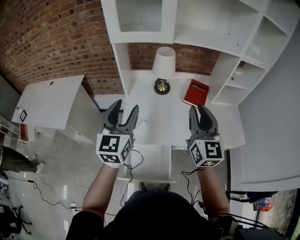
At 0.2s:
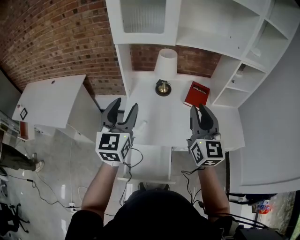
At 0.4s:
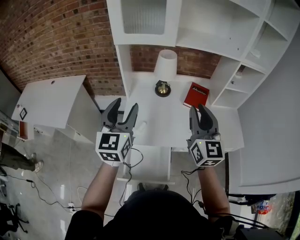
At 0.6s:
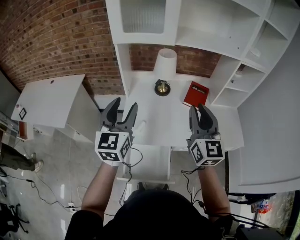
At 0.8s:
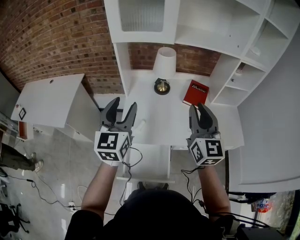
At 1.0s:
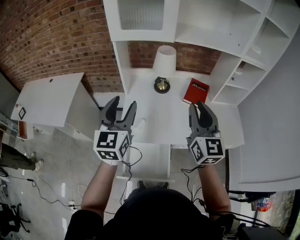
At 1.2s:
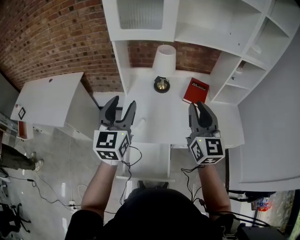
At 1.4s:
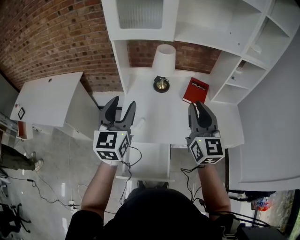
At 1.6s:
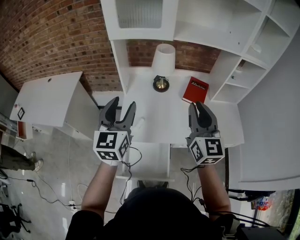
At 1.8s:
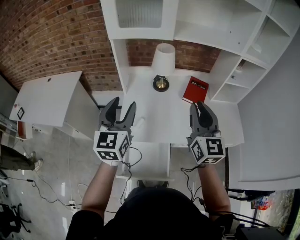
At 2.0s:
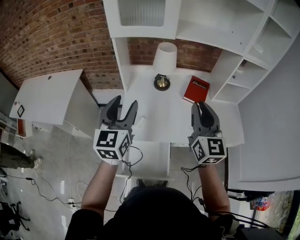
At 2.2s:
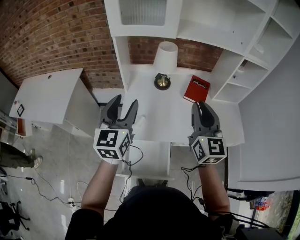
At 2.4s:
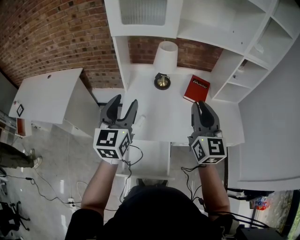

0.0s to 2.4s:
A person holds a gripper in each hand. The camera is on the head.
0.0s to 1.2s: There are only small adjustments of the grippers.
1.2s to 2.4s: Both grippers stay put.

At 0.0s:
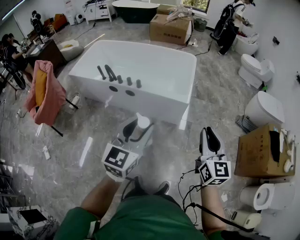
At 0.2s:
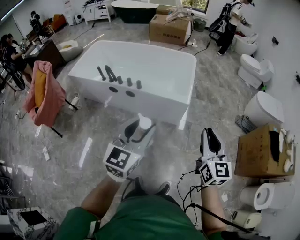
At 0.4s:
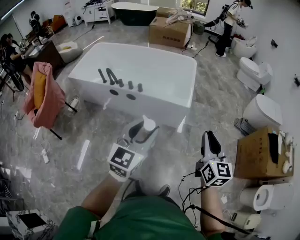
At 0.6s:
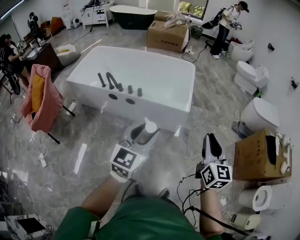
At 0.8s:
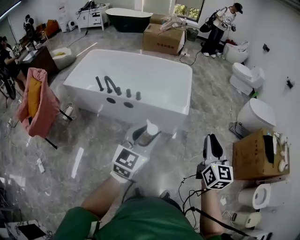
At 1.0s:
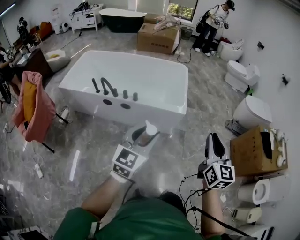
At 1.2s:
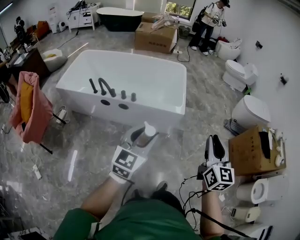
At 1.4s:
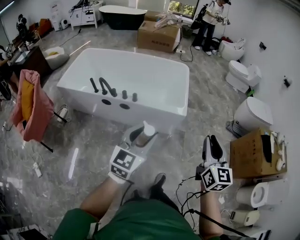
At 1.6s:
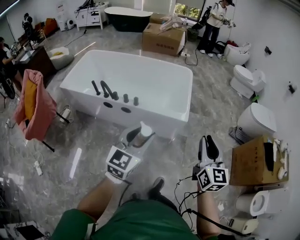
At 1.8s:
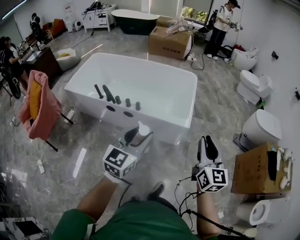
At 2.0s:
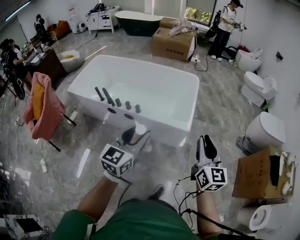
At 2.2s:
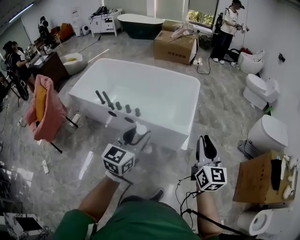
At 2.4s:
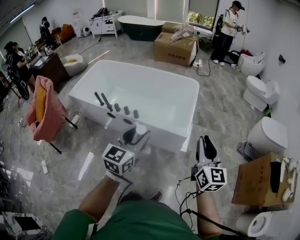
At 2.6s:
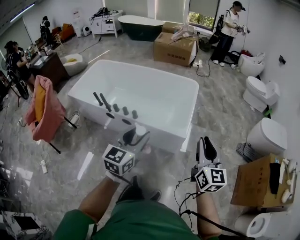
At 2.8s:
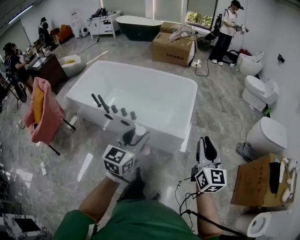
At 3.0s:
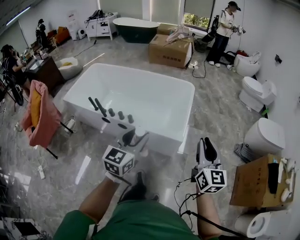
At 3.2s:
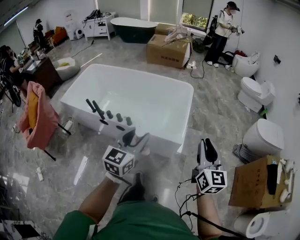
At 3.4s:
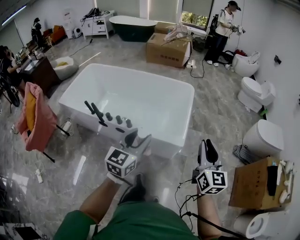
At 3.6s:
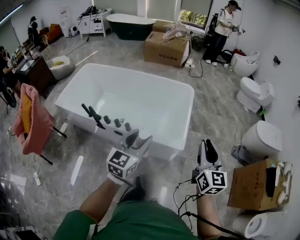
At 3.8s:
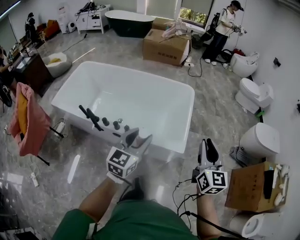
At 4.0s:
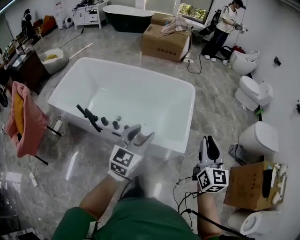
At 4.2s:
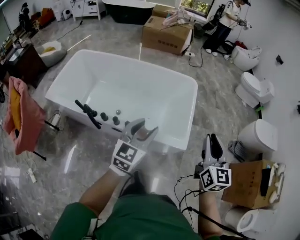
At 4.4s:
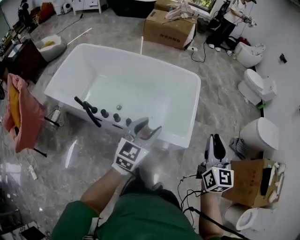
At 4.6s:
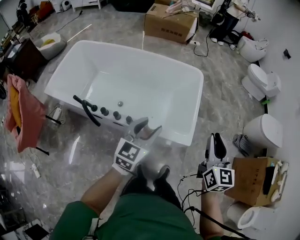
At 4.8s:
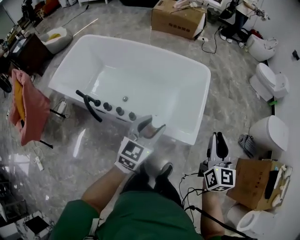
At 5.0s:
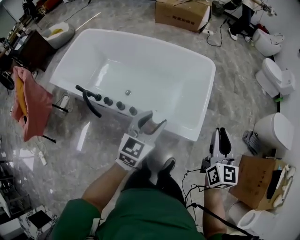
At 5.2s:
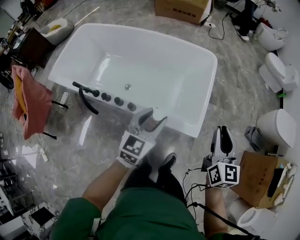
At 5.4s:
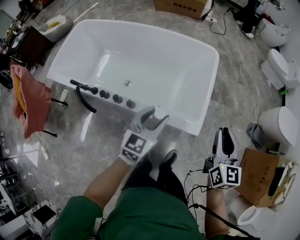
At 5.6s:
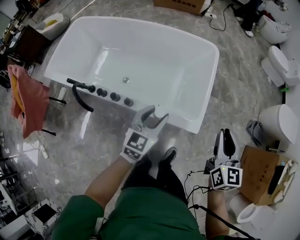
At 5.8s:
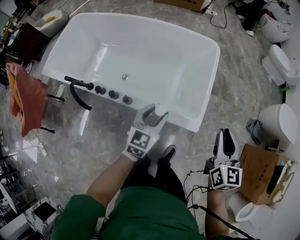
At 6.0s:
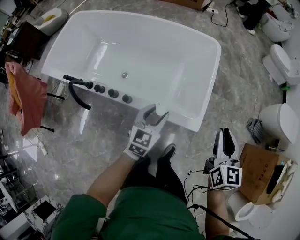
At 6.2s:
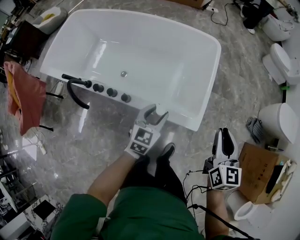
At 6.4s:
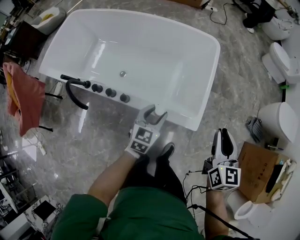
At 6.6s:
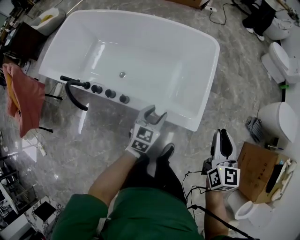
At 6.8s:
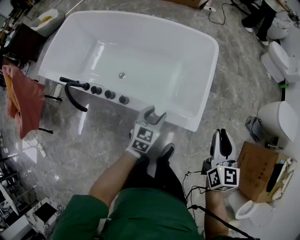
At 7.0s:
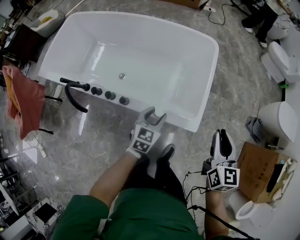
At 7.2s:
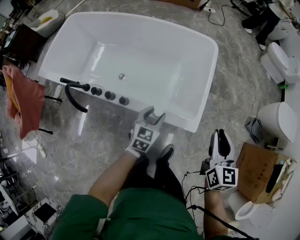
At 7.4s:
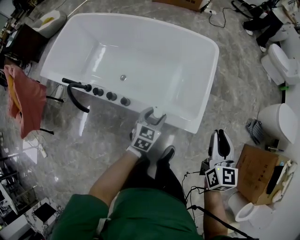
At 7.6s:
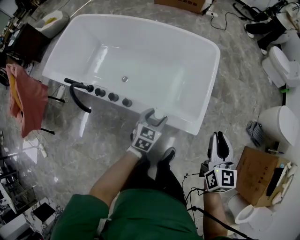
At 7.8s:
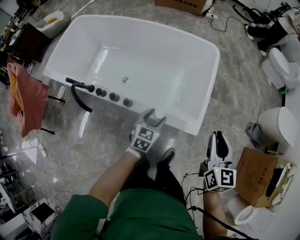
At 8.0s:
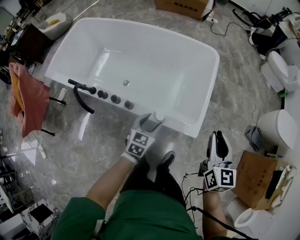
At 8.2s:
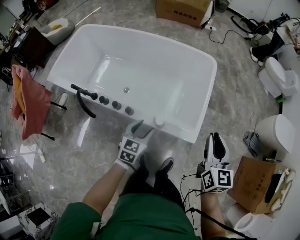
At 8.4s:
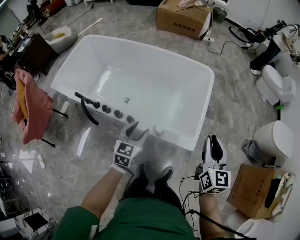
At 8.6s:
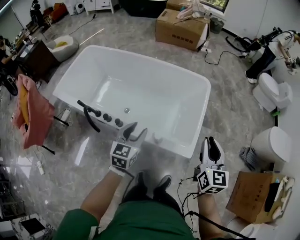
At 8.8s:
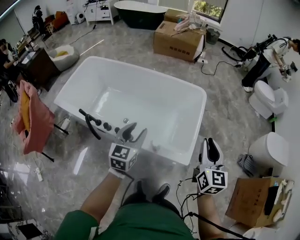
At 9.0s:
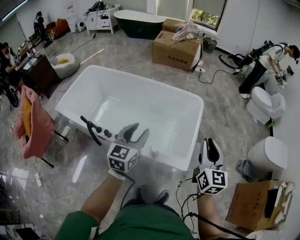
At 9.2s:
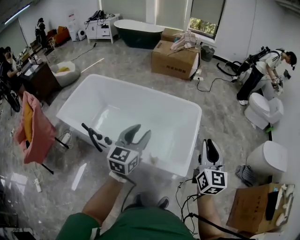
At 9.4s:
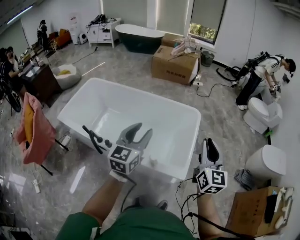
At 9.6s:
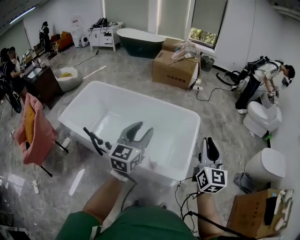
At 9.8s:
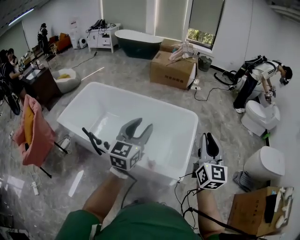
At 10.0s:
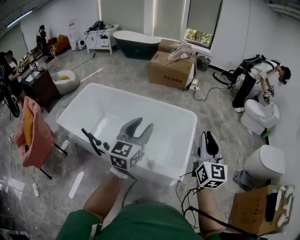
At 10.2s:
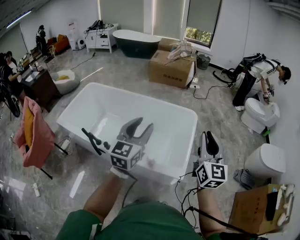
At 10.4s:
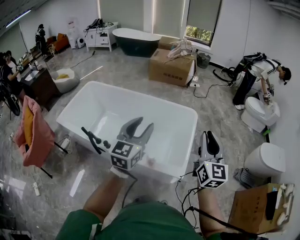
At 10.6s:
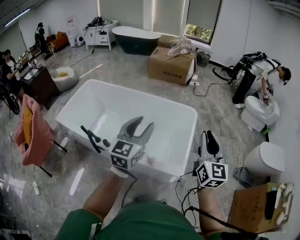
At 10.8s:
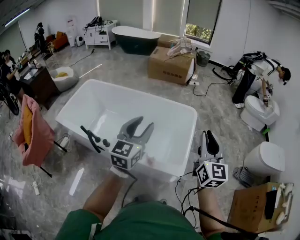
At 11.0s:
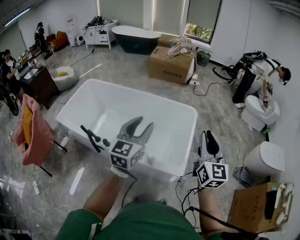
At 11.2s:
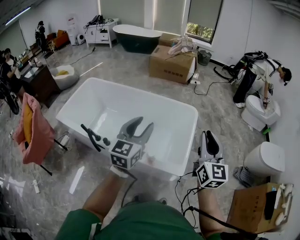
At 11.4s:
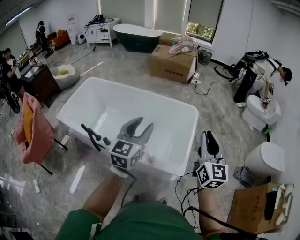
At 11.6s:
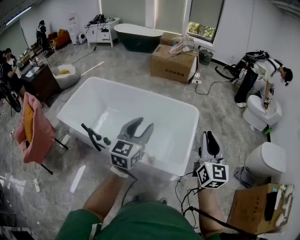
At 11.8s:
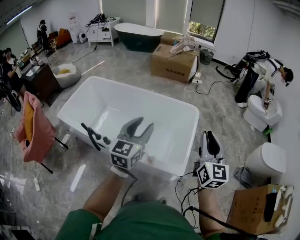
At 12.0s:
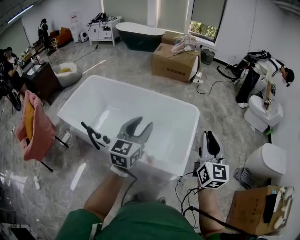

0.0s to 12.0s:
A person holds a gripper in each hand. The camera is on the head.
0.0s to 1.6s: The left gripper travels forward and to the left by about 15 cm, while the right gripper is displaced to the left and forward by approximately 15 cm.
1.6s to 3.0s: Both grippers travel together forward and to the right, about 20 cm.
3.0s to 4.4s: Both grippers move forward and to the left, approximately 30 cm.
4.4s to 6.0s: Both grippers travel together downward and forward, about 20 cm.
6.0s to 7.6s: The left gripper is displaced downward by approximately 10 cm.
7.6s to 9.0s: The left gripper shifts roughly 30 cm upward, and swivels about 30 degrees, while the right gripper goes some 20 cm upward.
9.0s to 10.4s: The grippers both shift upward by some 10 cm.
10.4s to 12.0s: The grippers make only small movements.

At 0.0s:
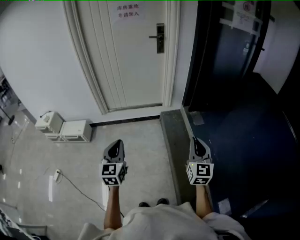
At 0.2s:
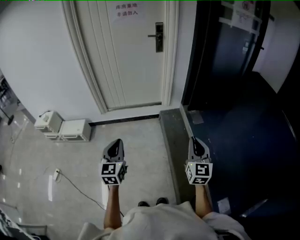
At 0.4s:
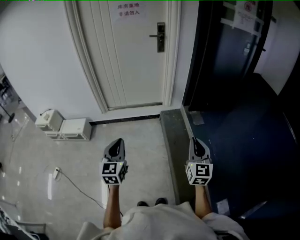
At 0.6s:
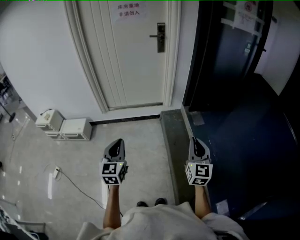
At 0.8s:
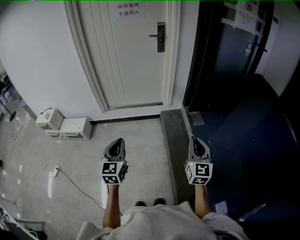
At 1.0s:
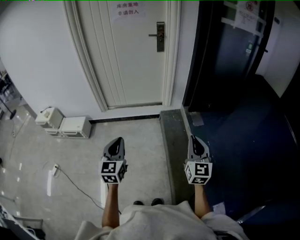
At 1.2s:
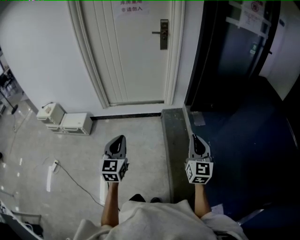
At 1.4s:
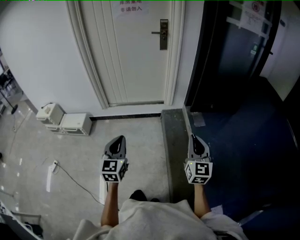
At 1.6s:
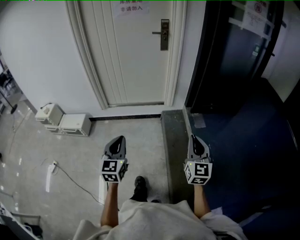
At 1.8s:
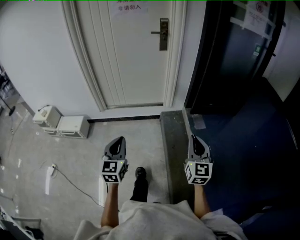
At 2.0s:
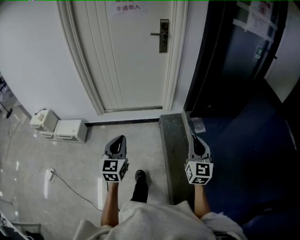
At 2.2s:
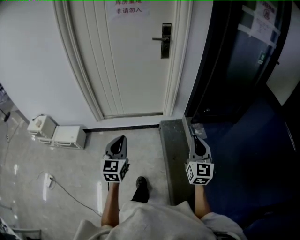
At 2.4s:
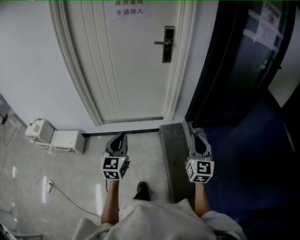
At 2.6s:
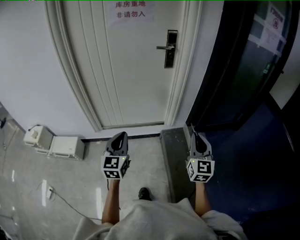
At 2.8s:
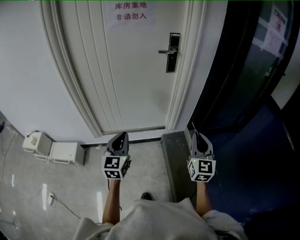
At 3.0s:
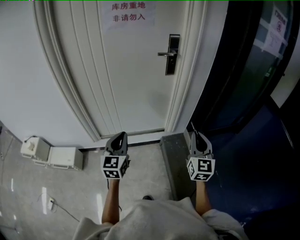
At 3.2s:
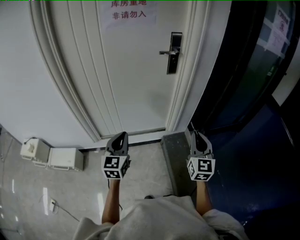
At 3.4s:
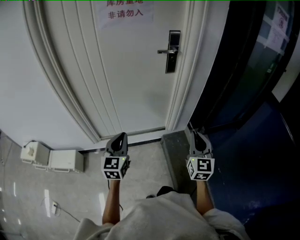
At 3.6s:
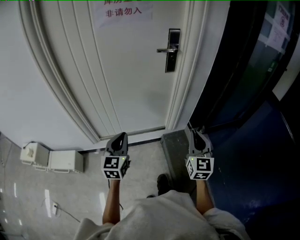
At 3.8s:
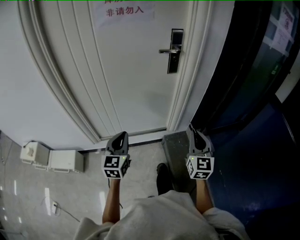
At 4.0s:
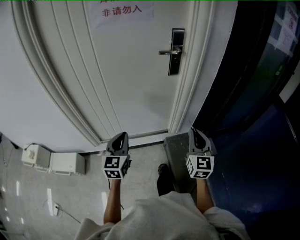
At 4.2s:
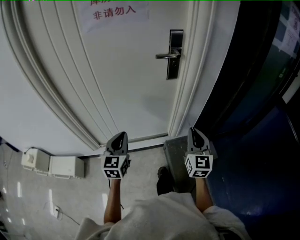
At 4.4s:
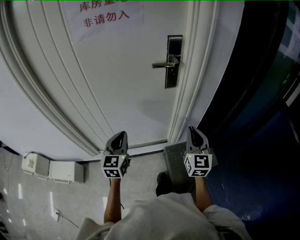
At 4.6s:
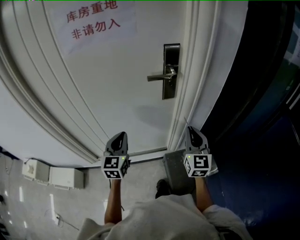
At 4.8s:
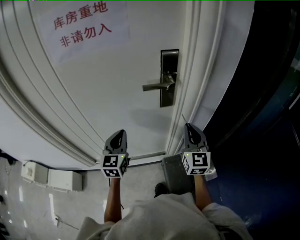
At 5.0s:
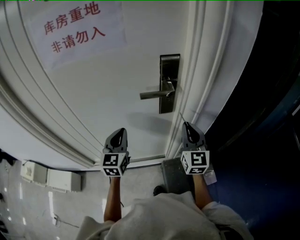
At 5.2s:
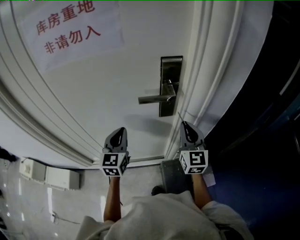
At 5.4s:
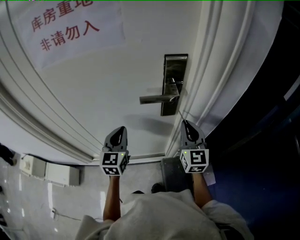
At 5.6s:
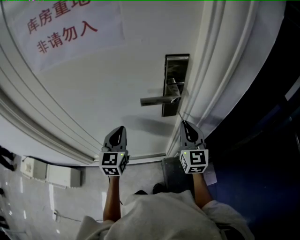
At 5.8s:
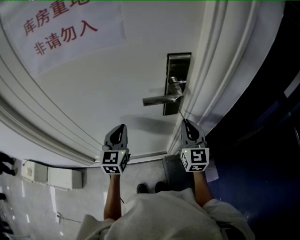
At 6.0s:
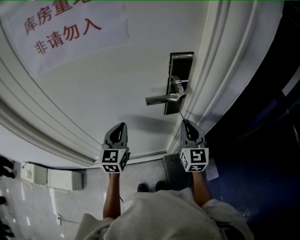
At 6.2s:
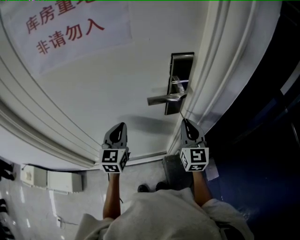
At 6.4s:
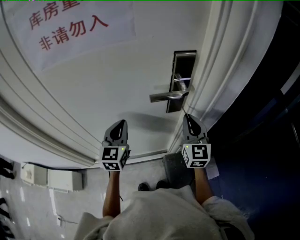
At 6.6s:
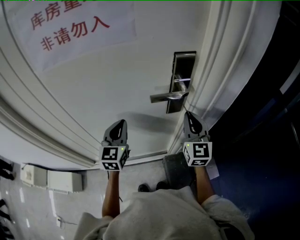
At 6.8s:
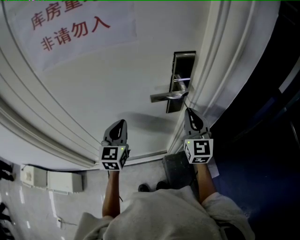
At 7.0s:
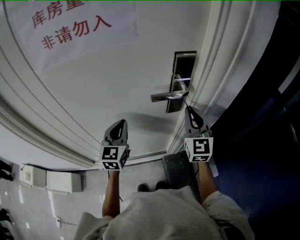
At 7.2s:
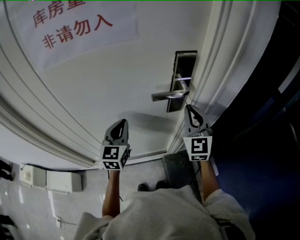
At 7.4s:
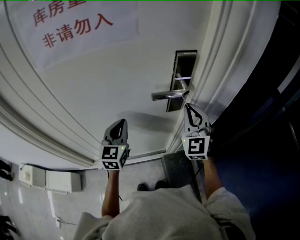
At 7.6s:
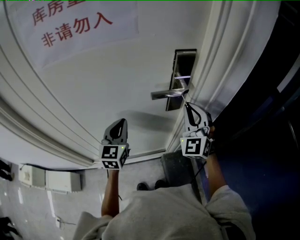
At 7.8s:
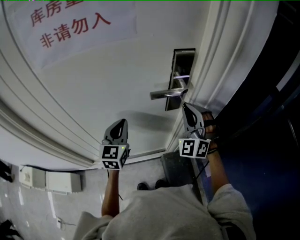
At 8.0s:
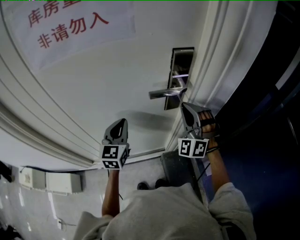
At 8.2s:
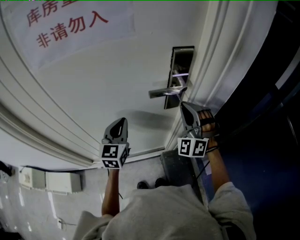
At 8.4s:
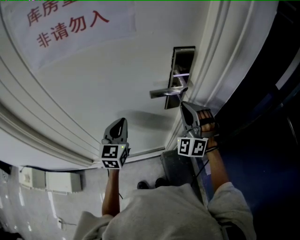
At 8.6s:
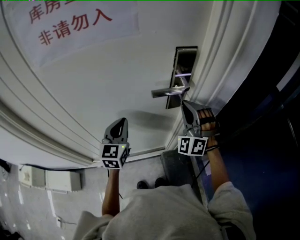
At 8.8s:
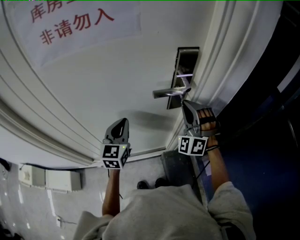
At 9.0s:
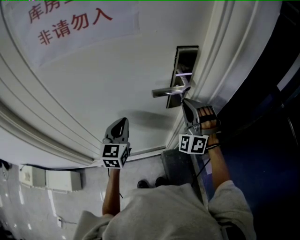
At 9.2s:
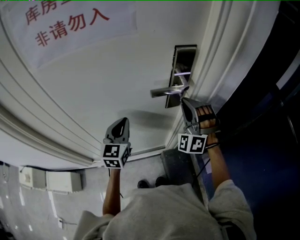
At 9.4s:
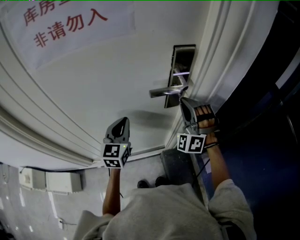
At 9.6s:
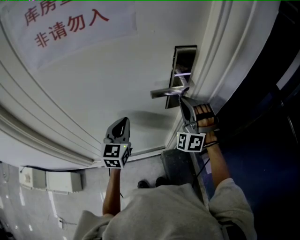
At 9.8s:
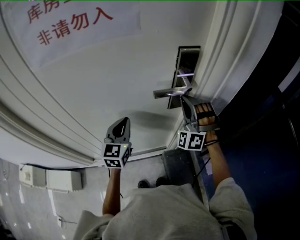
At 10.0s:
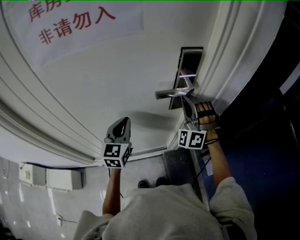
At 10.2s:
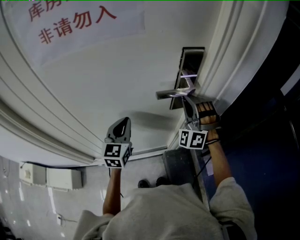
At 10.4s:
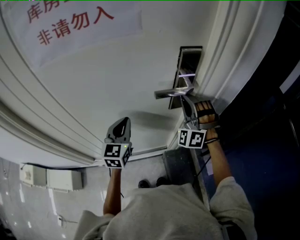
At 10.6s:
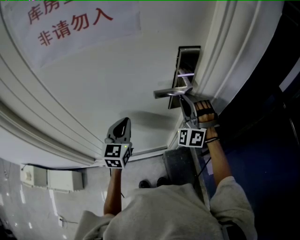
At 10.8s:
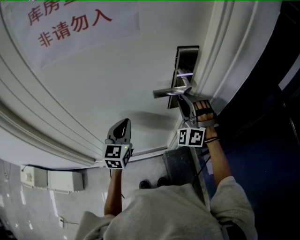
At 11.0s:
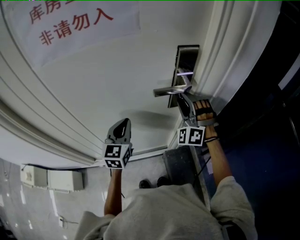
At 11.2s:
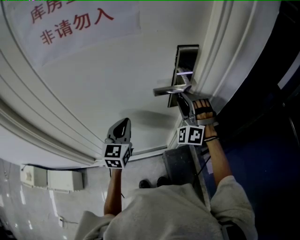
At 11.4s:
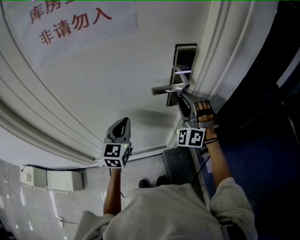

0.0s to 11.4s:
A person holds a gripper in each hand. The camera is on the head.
0.0s to 1.4s: The right gripper changes place by roughly 5 cm. The left gripper is displaced to the right by some 5 cm.
1.4s to 2.8s: The grippers both shift forward by some 40 cm.
2.8s to 4.2s: Both grippers travel together forward, approximately 25 cm.
4.2s to 5.6s: Both grippers travel together forward, approximately 30 cm.
5.6s to 7.2s: The right gripper shifts some 5 cm upward.
7.2s to 8.6s: The right gripper rotates around the line of its fingers by approximately 50 degrees, counterclockwise from behind.
8.6s to 10.0s: The grippers make only small movements.
10.0s to 11.4s: The right gripper opens up.
